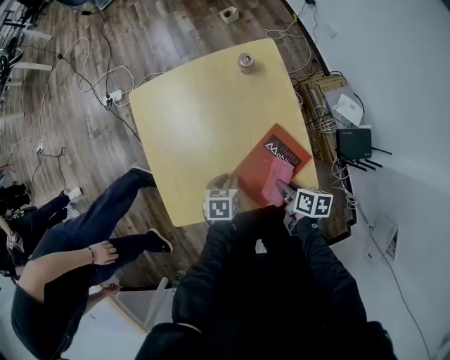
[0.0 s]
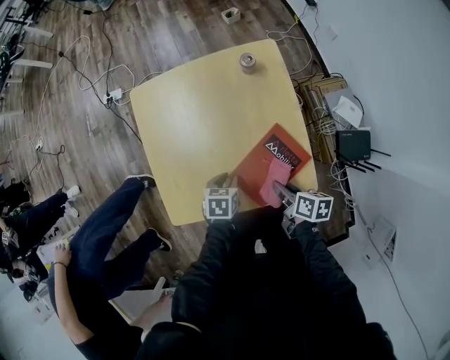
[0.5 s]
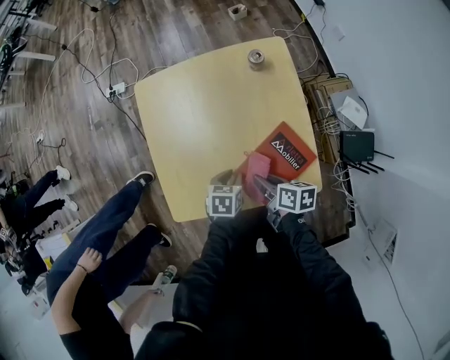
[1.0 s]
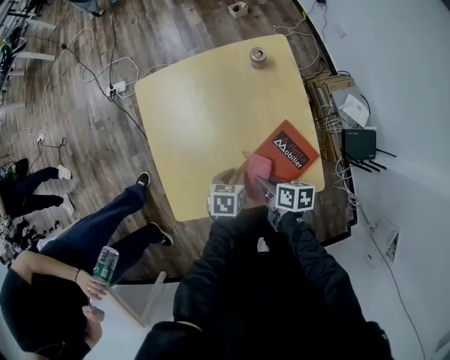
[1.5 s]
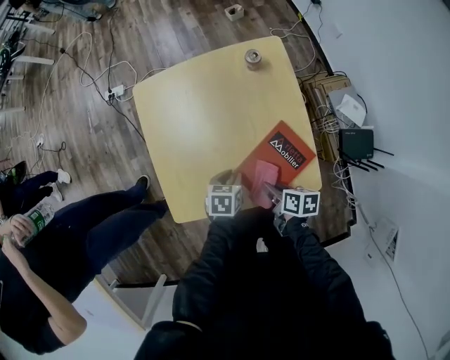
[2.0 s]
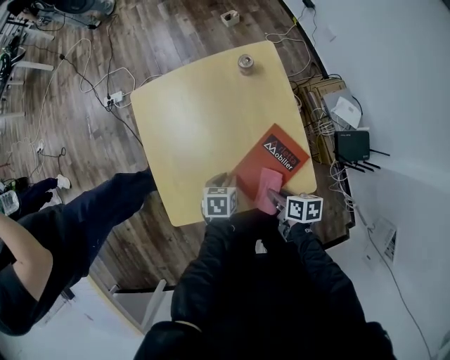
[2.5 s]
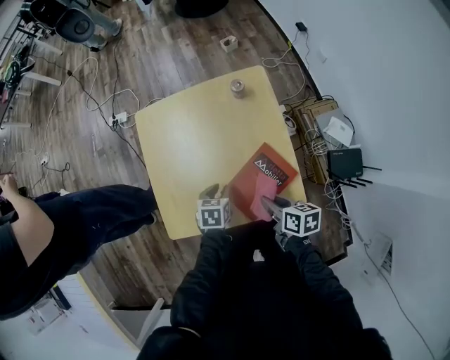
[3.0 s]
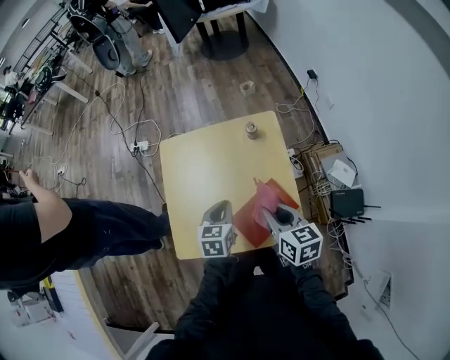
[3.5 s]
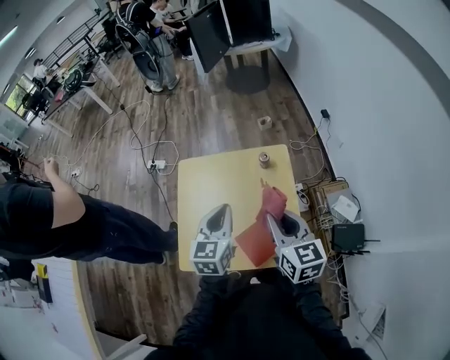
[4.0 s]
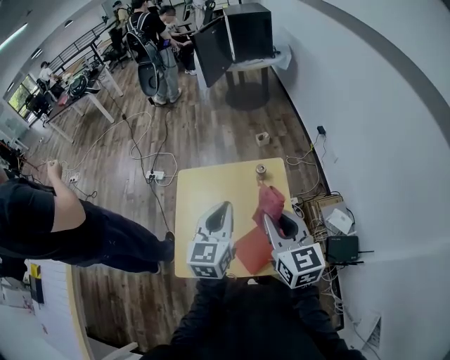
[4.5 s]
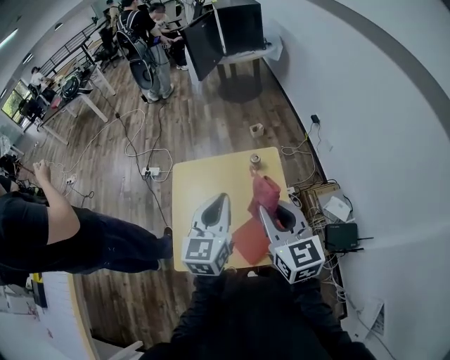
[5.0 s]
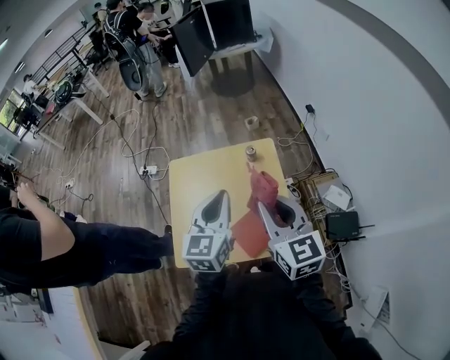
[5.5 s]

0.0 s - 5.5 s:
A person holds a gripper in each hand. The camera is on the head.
0.0 s - 2.0 s: The right gripper goes about 5 cm to the left.
2.0 s - 3.5 s: Both grippers move upward, roughly 20 cm. The left gripper turns by approximately 30 degrees, while the right gripper changes its angle by some 40 degrees.
3.5 s - 5.5 s: The two grippers go approximately 20 cm upward. The right gripper changes its angle by roughly 30 degrees; the left gripper rotates approximately 30 degrees.

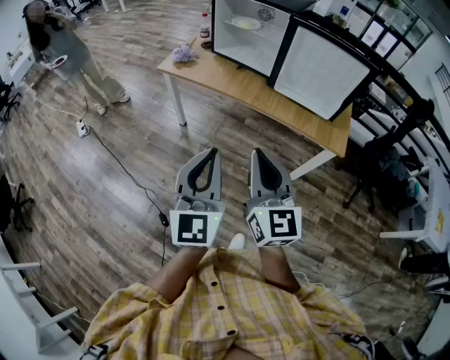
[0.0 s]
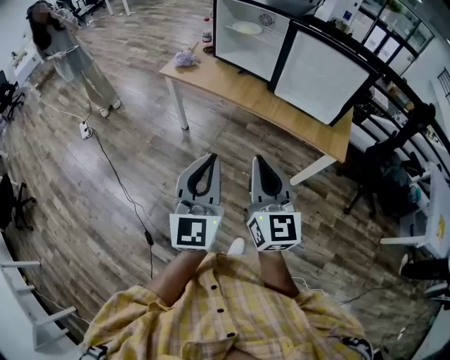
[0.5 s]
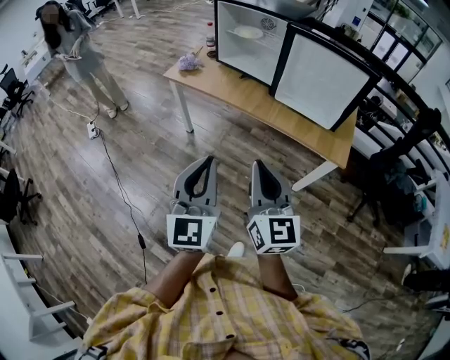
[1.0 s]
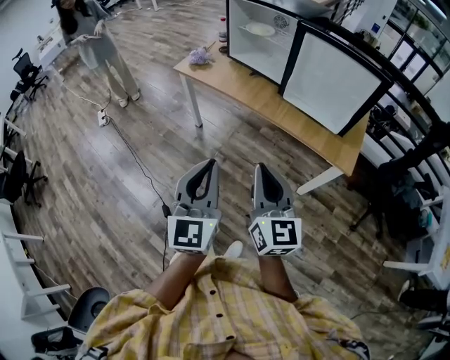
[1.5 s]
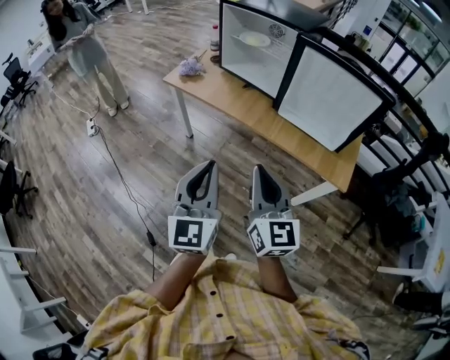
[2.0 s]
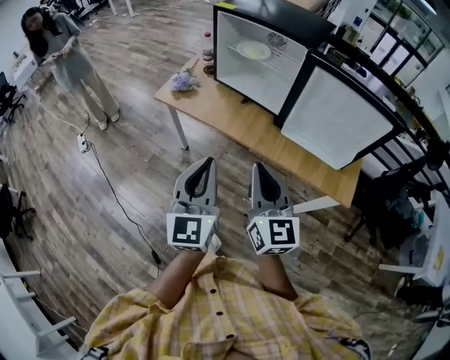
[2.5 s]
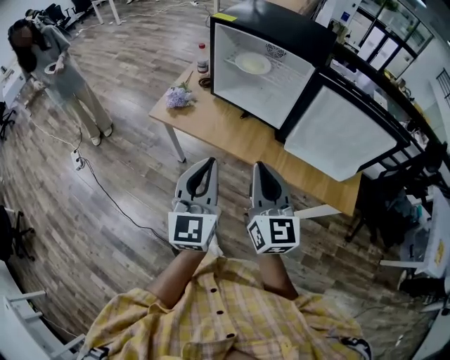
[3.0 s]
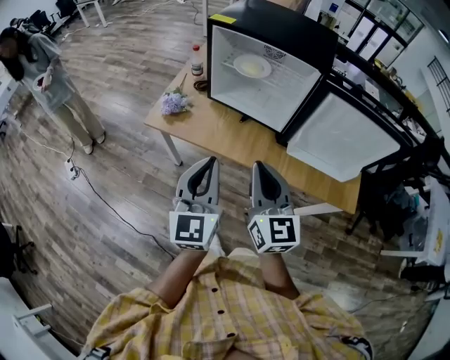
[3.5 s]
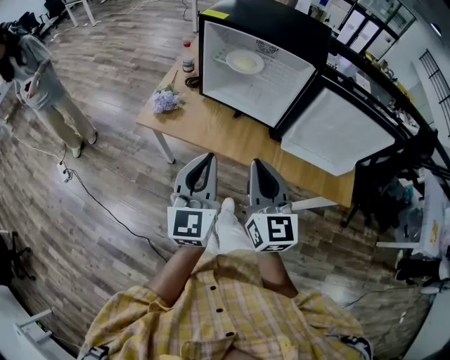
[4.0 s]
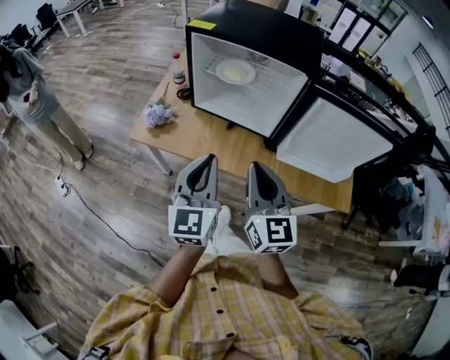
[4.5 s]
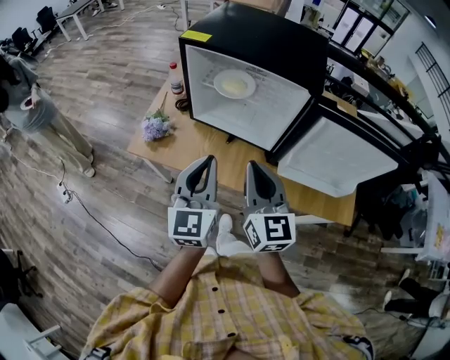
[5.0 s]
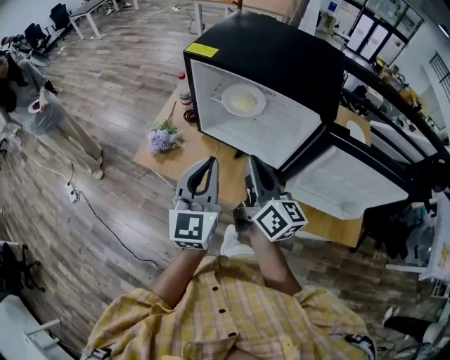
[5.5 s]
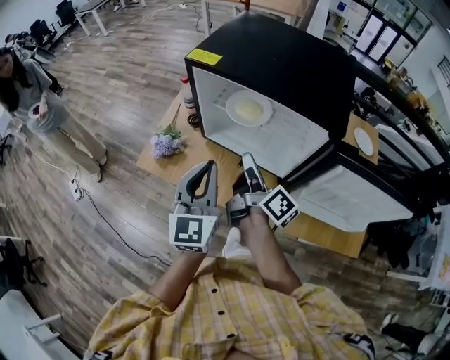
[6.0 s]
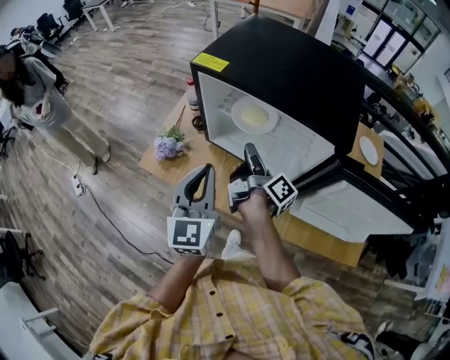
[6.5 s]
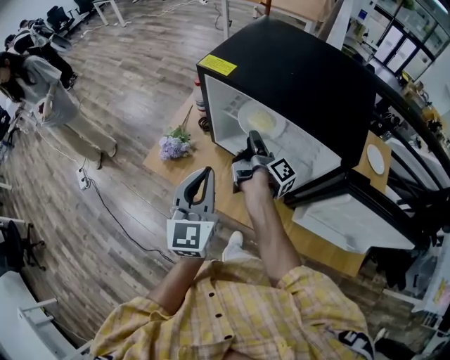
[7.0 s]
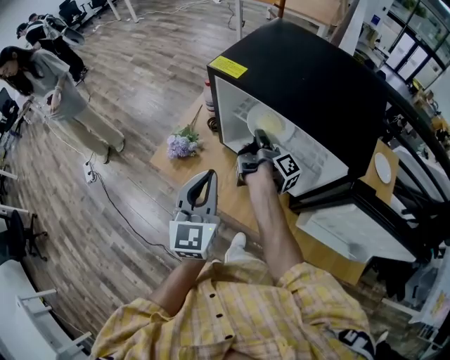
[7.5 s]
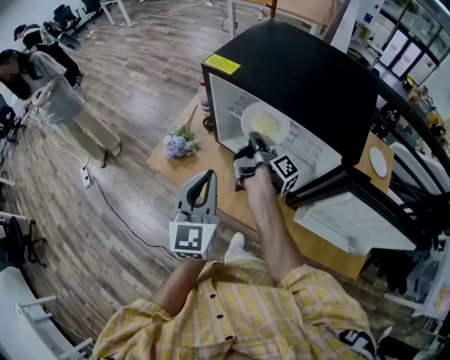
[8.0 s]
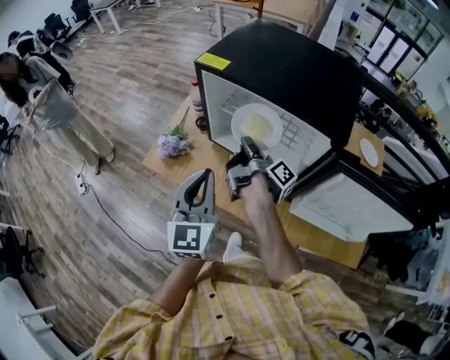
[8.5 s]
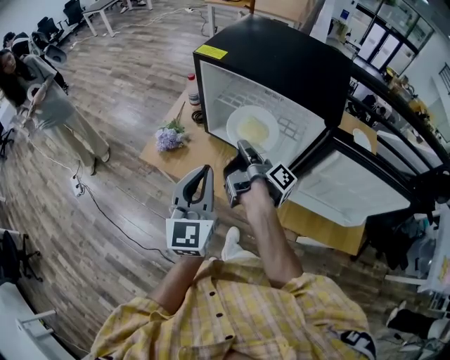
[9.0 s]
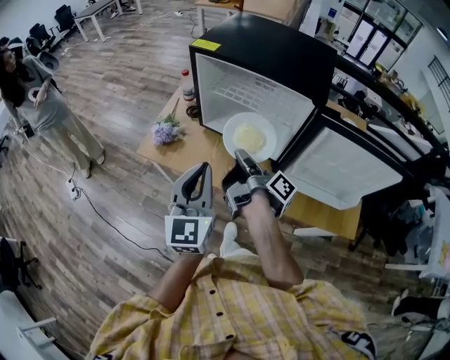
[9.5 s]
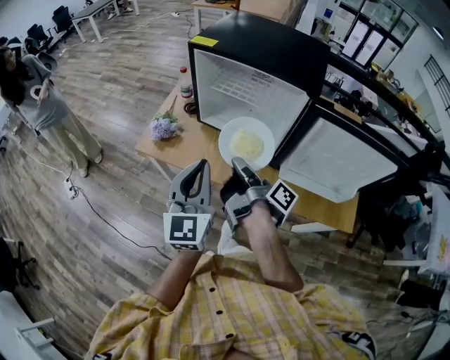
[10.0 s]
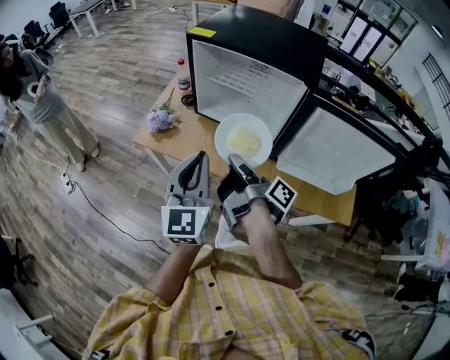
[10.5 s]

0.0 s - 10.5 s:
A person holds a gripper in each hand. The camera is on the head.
0.0 s - 2.0 s: Both grippers move forward and to the right, approximately 10 cm.
2.0 s - 4.0 s: The grippers both shift forward by roughly 25 cm.
4.0 s - 6.5 s: Both grippers travel together forward, approximately 25 cm. The right gripper twists some 90 degrees clockwise, seen from behind, and opens up.
6.5 s - 8.5 s: The right gripper reaches some 10 cm forward, then returns, and closes its fingers.
8.5 s - 10.5 s: The left gripper is displaced backward by about 10 cm, while the right gripper travels backward by some 25 cm.

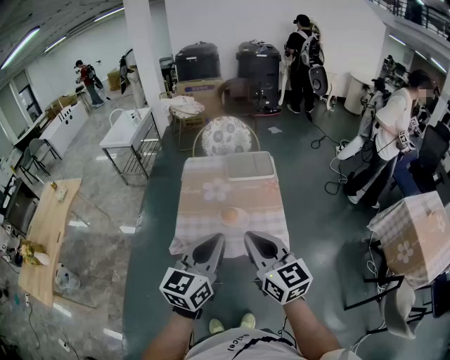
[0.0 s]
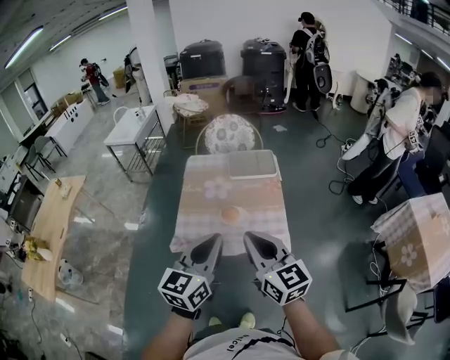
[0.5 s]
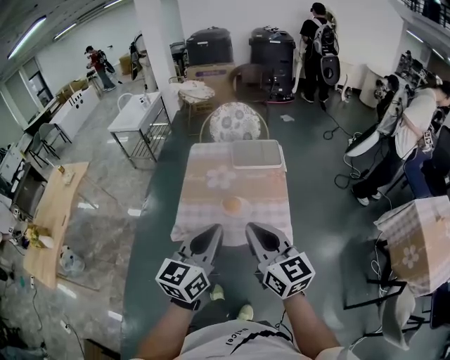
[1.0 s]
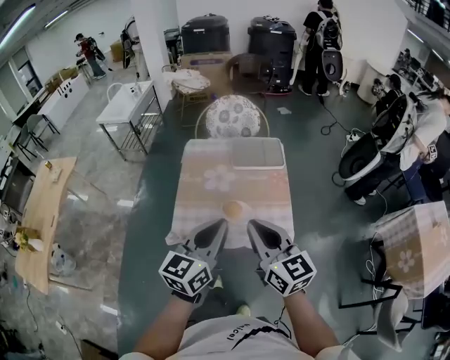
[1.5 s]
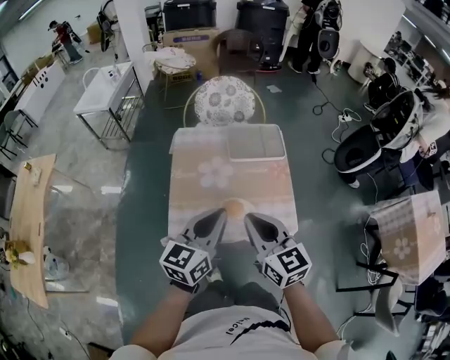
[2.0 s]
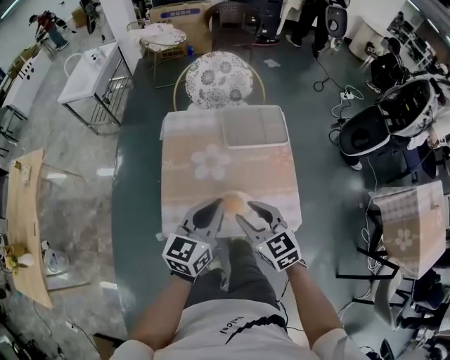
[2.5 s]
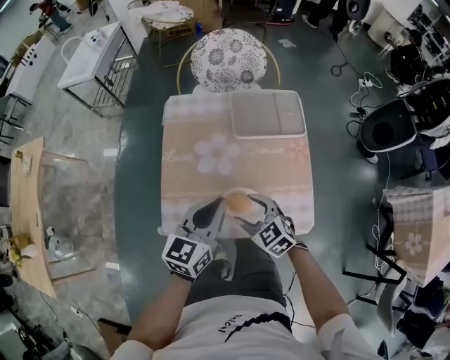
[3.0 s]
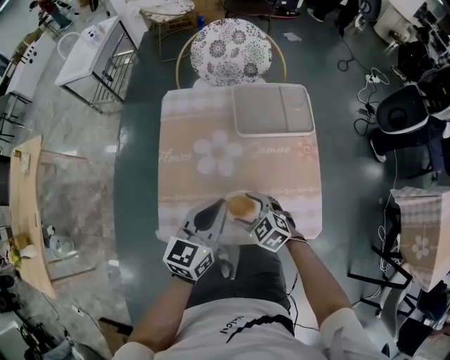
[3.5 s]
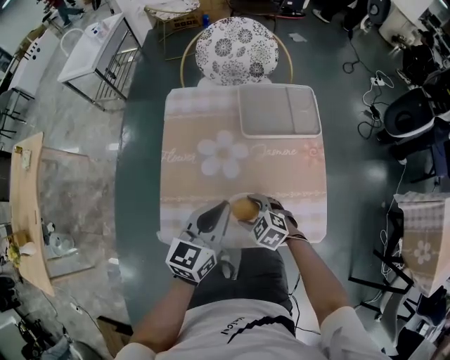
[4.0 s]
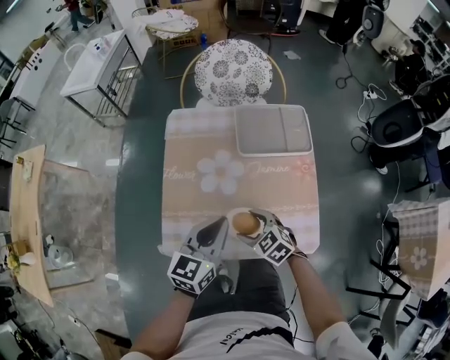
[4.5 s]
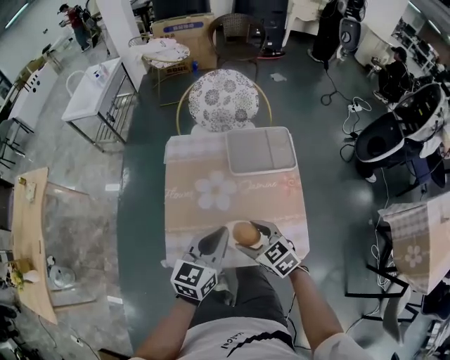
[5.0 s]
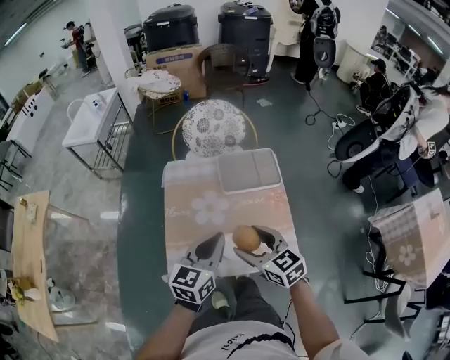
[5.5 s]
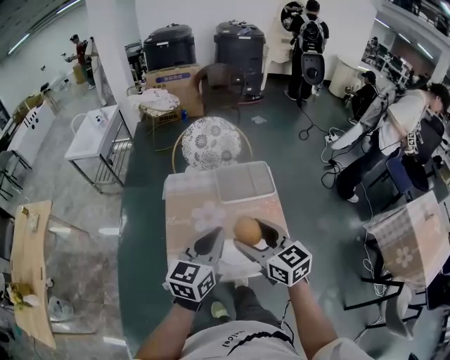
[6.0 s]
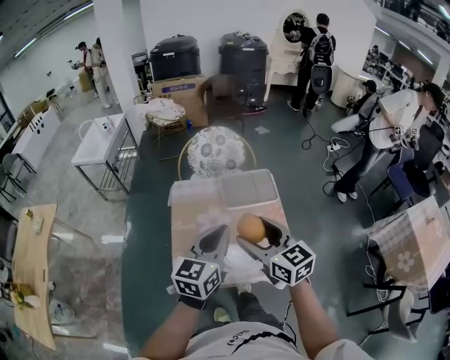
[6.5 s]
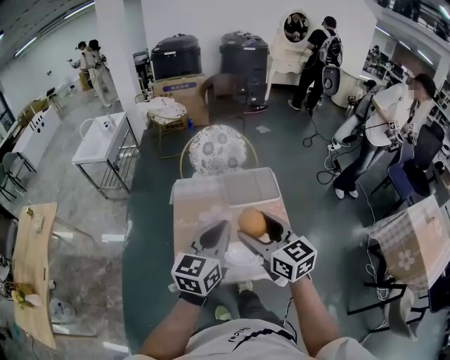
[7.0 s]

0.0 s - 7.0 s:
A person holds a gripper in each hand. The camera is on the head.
0.0 s - 2.0 s: The grippers both shift forward and downward by approximately 20 cm.
2.0 s - 3.5 s: The left gripper shifts about 20 cm downward and forward; the right gripper travels downward by about 35 cm, angles its fingers downward, by roughly 40 degrees, and opens its fingers.
3.5 s - 5.0 s: The right gripper is displaced upward by about 15 cm; the left gripper is displaced upward by about 5 cm.
5.0 s - 7.0 s: The left gripper is displaced upward by roughly 20 cm; the right gripper moves upward, some 30 cm, and turns by roughly 30 degrees.

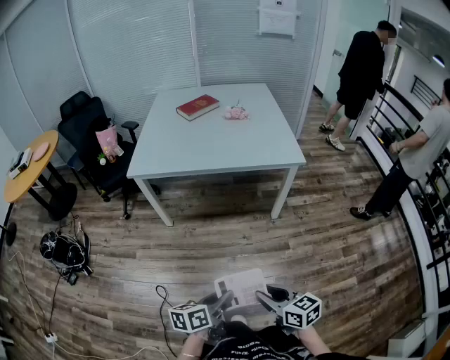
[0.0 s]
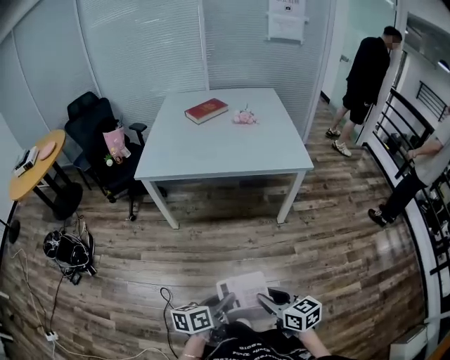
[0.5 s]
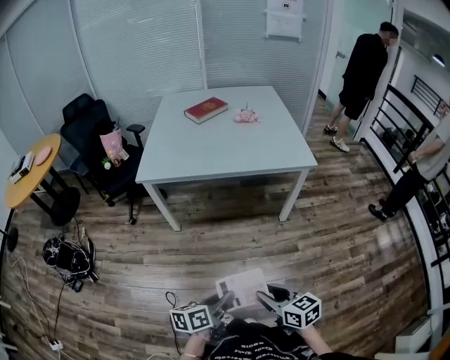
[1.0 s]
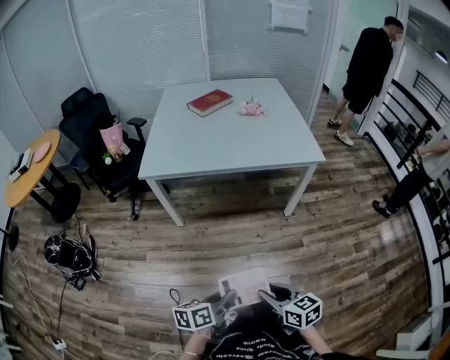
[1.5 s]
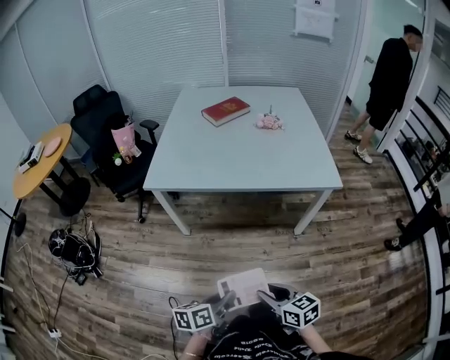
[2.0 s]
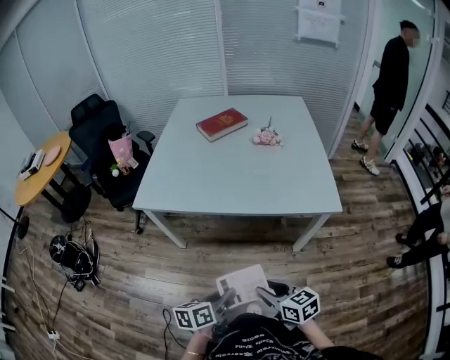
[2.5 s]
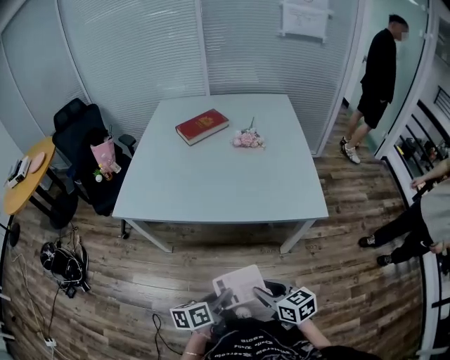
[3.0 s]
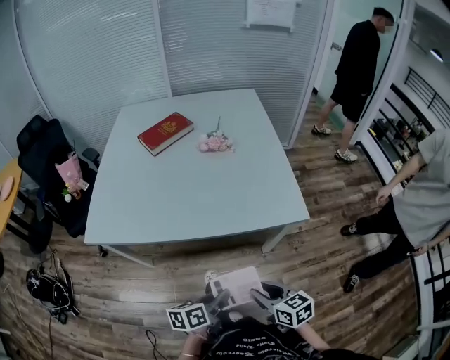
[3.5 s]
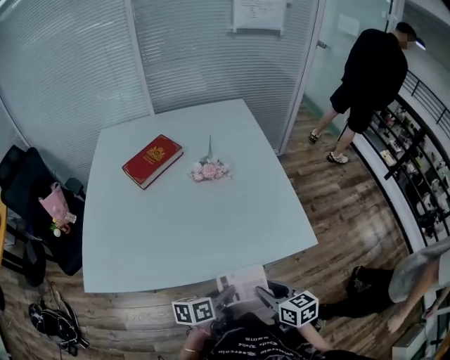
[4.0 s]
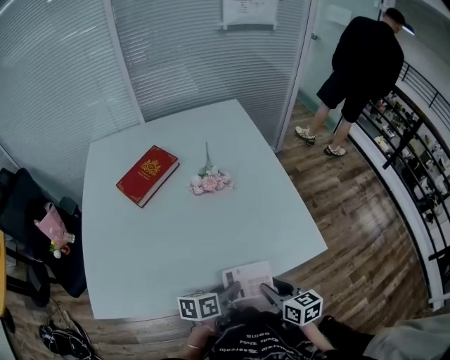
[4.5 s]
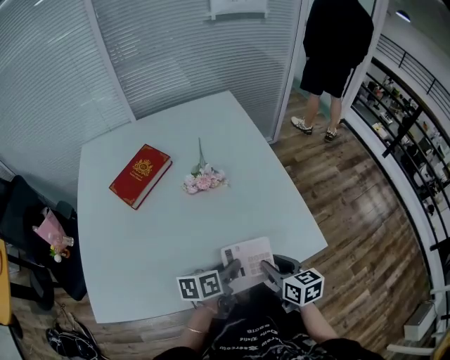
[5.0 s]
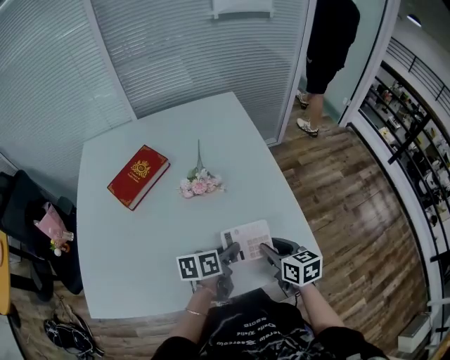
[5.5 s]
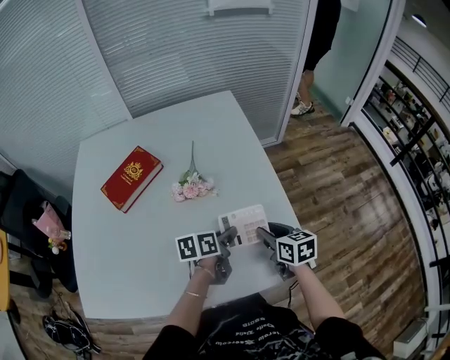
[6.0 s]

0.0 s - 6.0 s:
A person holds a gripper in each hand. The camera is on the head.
0.0 s - 2.0 s: The left gripper goes approximately 15 cm forward and to the left. Meanwhile the right gripper heads forward, covering about 15 cm.
2.0 s - 4.0 s: The two grippers travel together, forward and to the right, about 40 cm. The right gripper changes its angle by approximately 20 degrees.
4.0 s - 6.0 s: The two grippers go approximately 30 cm forward.
